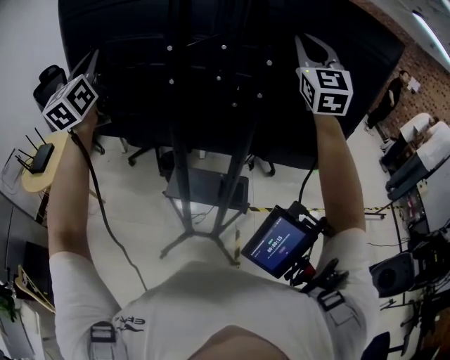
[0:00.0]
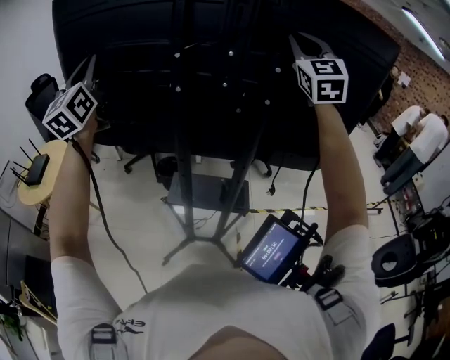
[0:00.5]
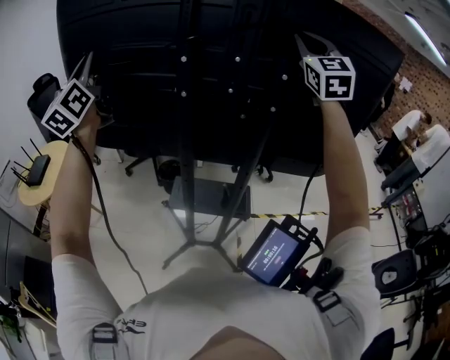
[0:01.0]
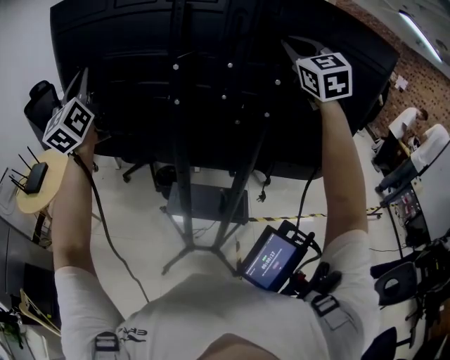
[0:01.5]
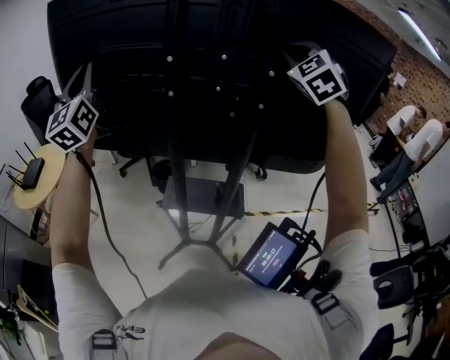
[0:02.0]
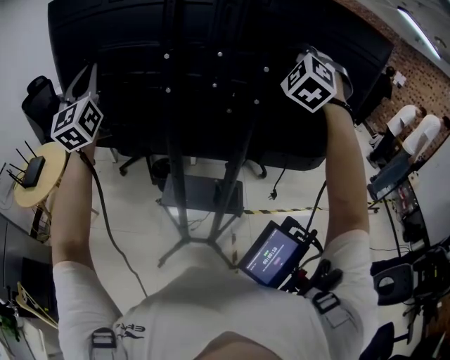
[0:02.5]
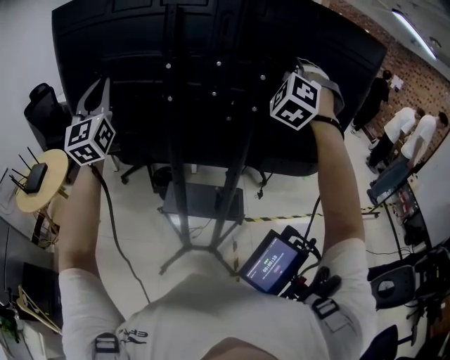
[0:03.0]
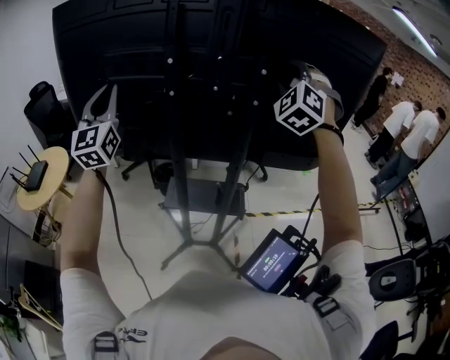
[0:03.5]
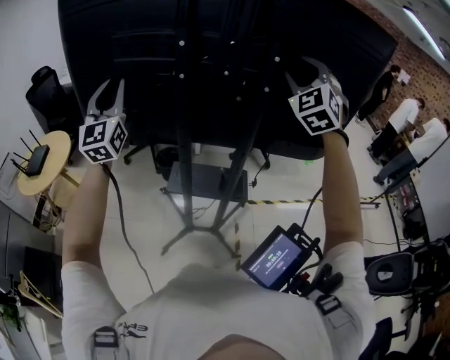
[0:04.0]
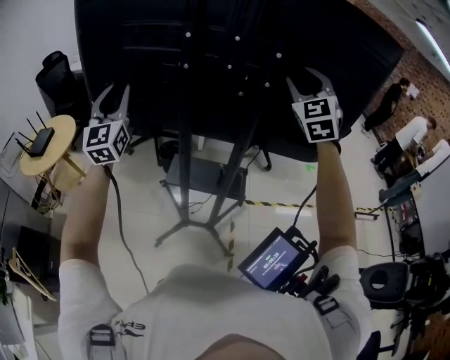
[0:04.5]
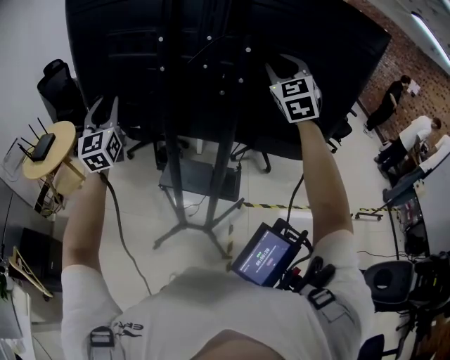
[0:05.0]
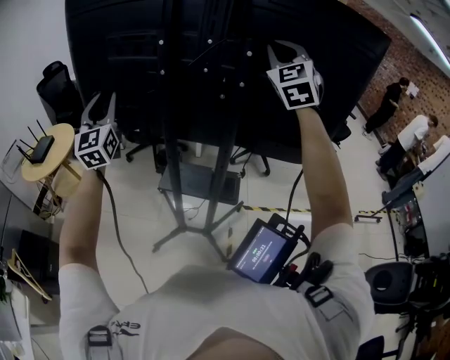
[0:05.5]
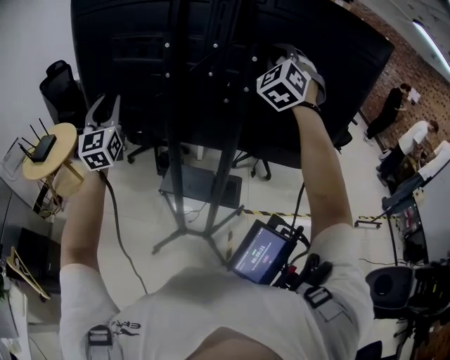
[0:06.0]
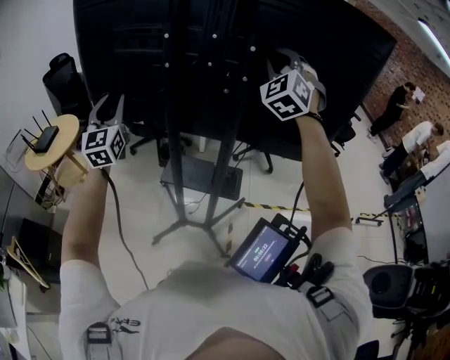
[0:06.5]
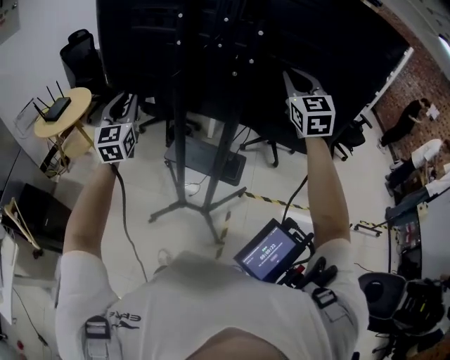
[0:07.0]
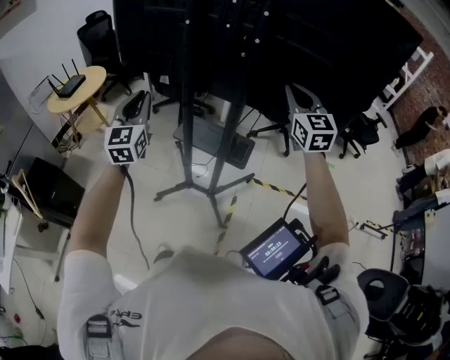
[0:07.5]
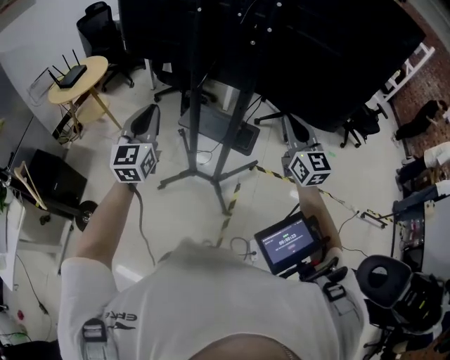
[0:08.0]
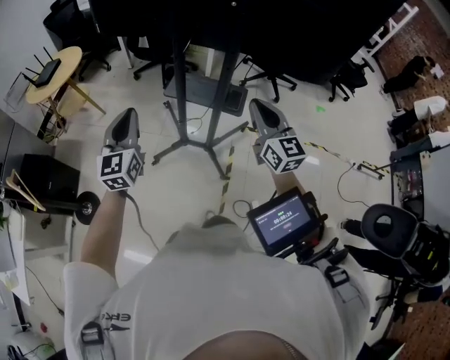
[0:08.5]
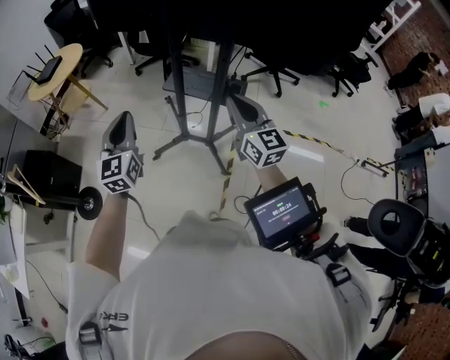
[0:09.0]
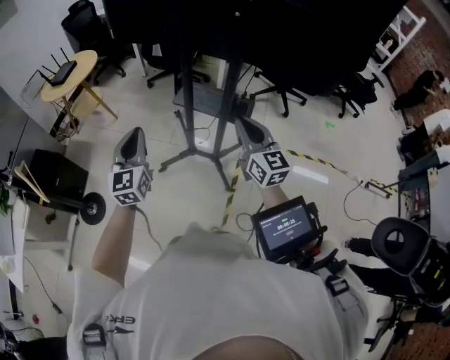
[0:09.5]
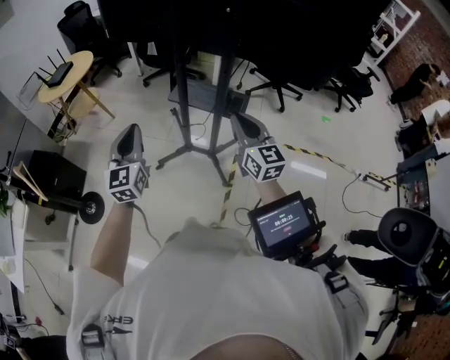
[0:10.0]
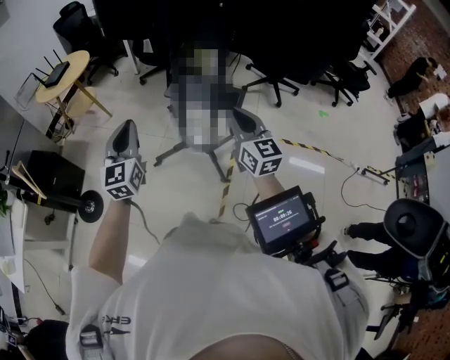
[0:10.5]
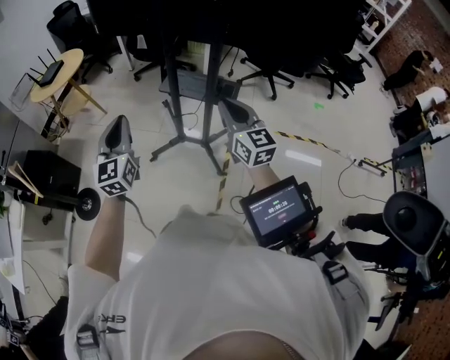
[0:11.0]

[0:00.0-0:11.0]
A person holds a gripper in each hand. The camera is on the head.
0:00.0 to 0:02.0: The right gripper changes place by roughly 5 cm, and changes its angle by roughly 40 degrees.
0:02.0 to 0:03.5: The right gripper shifts by about 5 cm, and opens. Meanwhile the left gripper moves to the right, approximately 5 cm.
0:03.5 to 0:05.5: The right gripper swivels some 40 degrees, and closes, while the left gripper travels downward and backward by roughly 10 cm.
0:05.5 to 0:07.5: The left gripper heads backward, downward and to the right, covering approximately 20 cm. Meanwhile the right gripper goes approximately 20 cm downward and backward, and changes its angle by about 30 degrees.
0:07.5 to 0:09.0: The left gripper goes about 20 cm backward and downward. Meanwhile the right gripper goes about 25 cm downward, backward and to the left, and turns by approximately 20 degrees.
0:09.0 to 0:11.0: There are only small adjustments of the grippers.

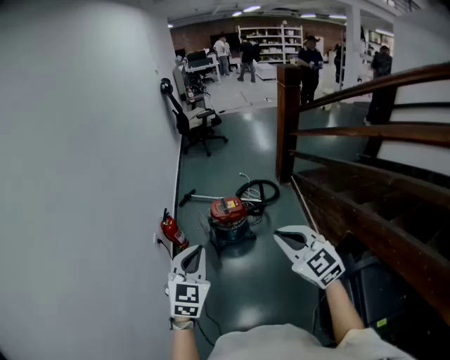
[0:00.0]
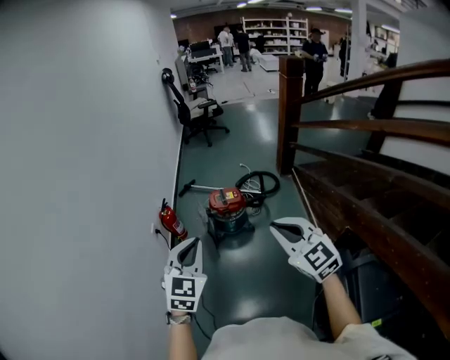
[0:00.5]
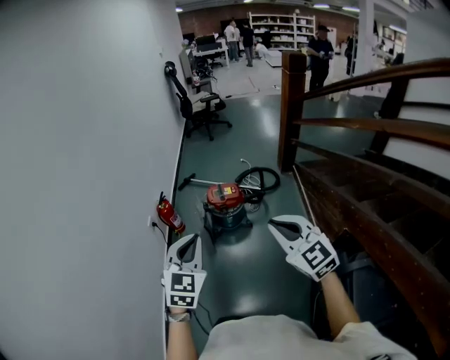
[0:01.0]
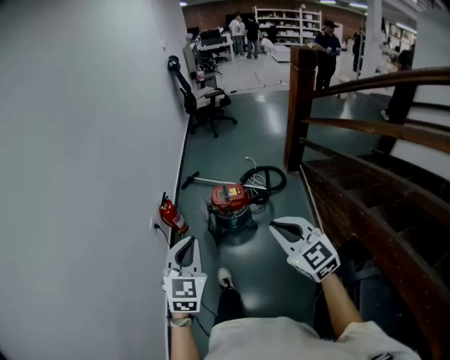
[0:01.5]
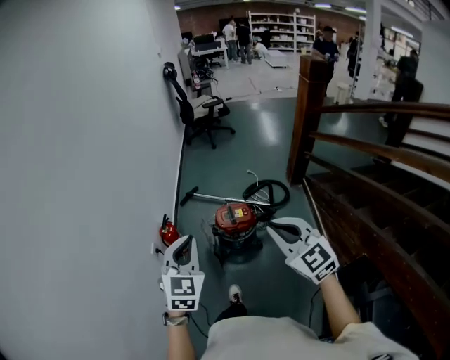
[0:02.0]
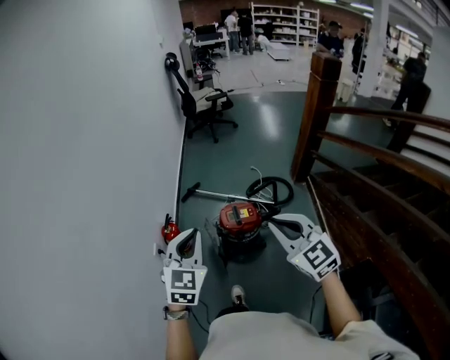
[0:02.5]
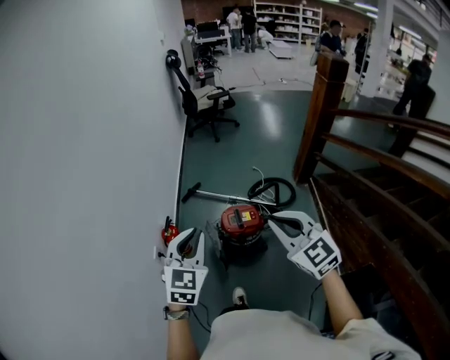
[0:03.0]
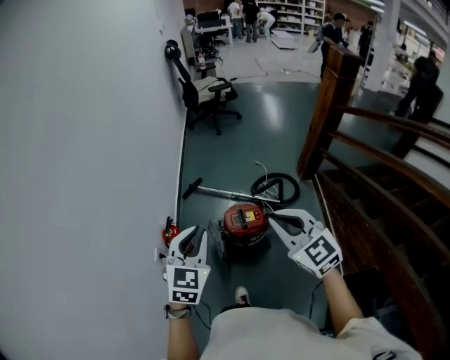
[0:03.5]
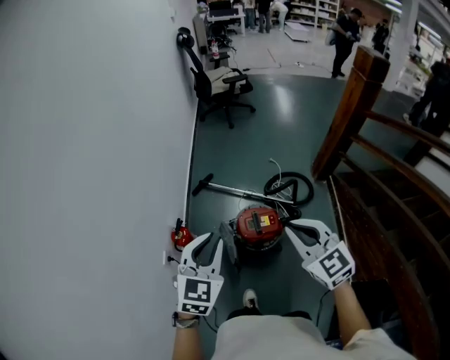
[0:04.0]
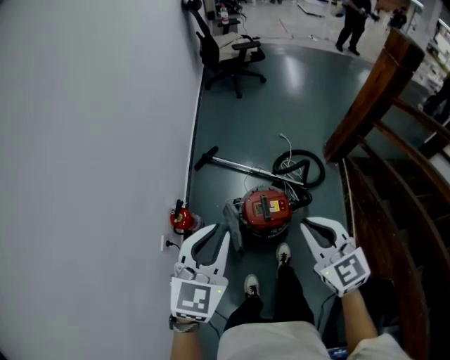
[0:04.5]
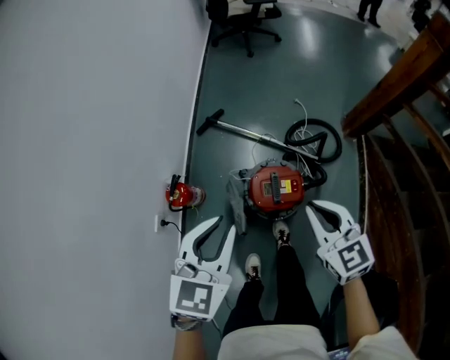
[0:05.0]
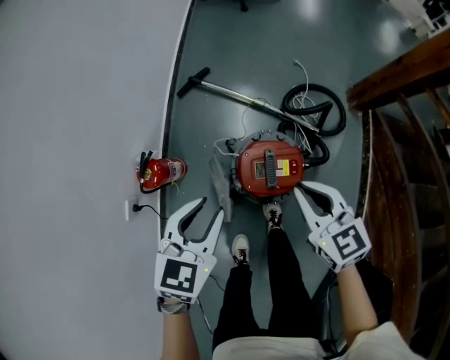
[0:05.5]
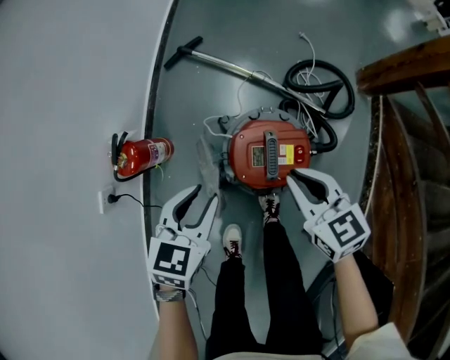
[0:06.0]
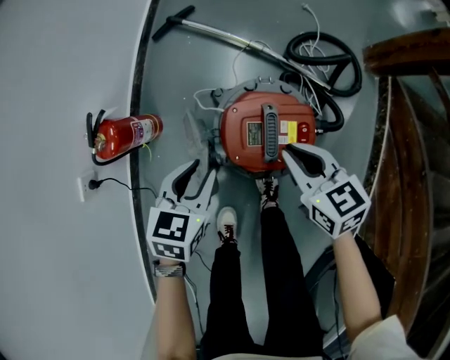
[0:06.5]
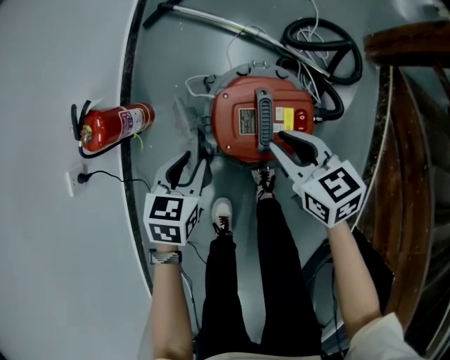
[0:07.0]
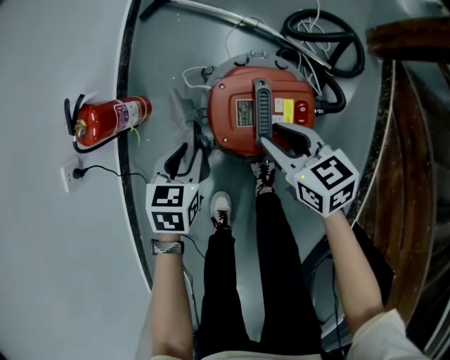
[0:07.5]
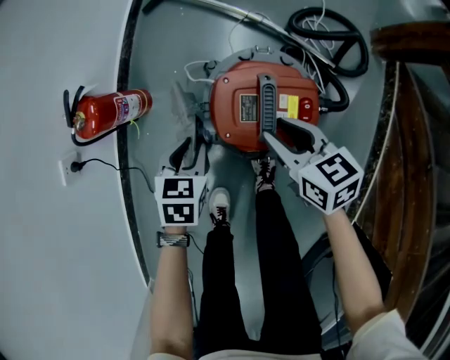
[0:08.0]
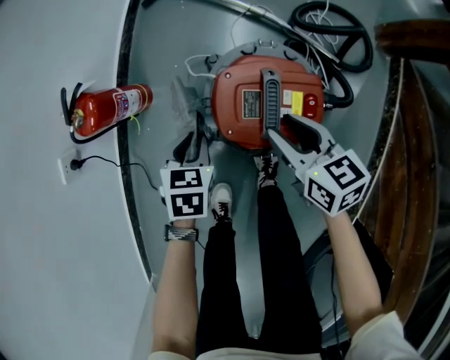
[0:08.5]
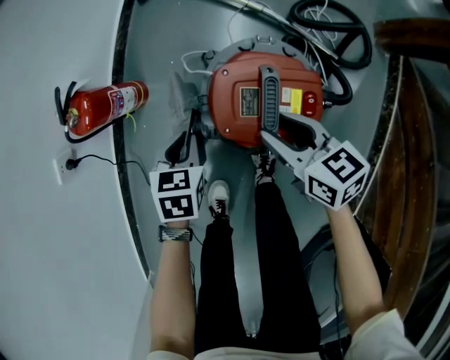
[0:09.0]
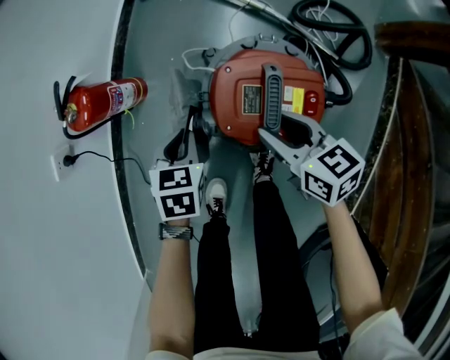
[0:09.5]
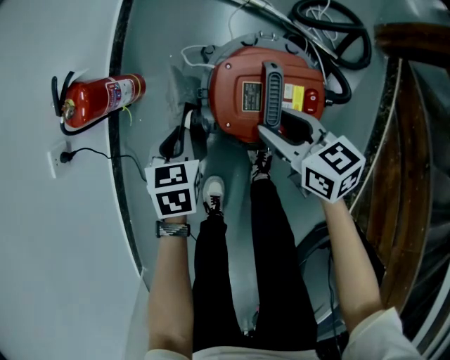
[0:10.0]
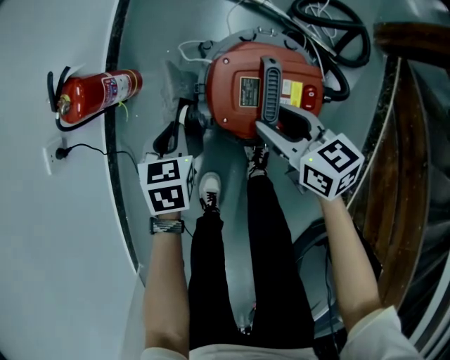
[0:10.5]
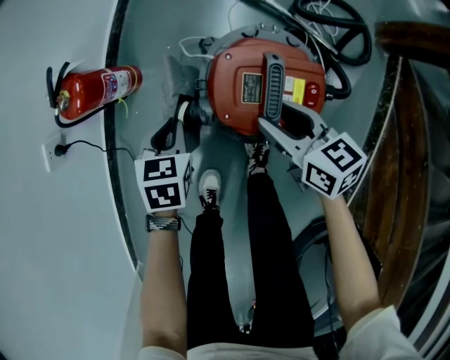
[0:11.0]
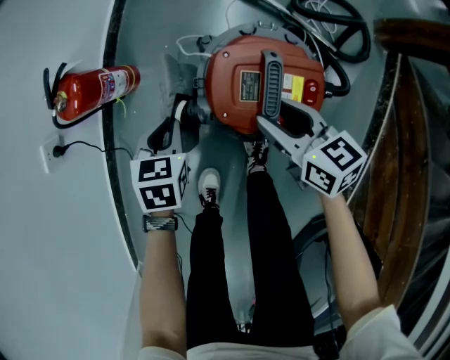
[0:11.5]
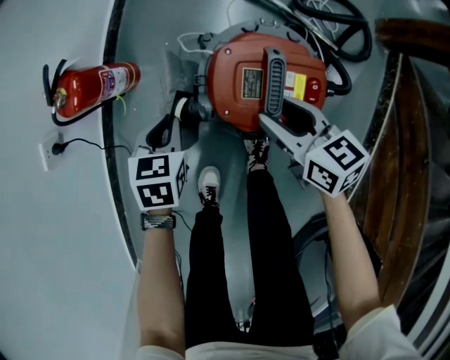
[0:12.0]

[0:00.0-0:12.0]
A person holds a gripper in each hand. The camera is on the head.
0:00.0 to 0:02.0: Both grippers move forward, roughly 25 cm.
0:02.0 to 0:04.0: The grippers both shift forward by roughly 25 cm.
0:04.0 to 0:06.0: The grippers both shift downward by about 50 cm. The left gripper swivels about 30 degrees. Meanwhile the right gripper turns by some 30 degrees.
0:06.0 to 0:08.0: Both grippers move downward, approximately 20 cm. The left gripper swivels approximately 20 degrees, while the right gripper opens up.
0:08.0 to 0:10.0: The grippers stay close to where they were, moving slightly.
0:10.0 to 0:12.0: The two grippers keep their place.

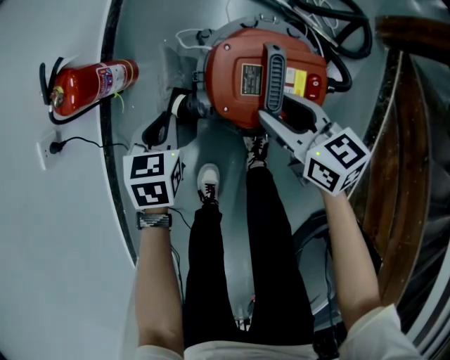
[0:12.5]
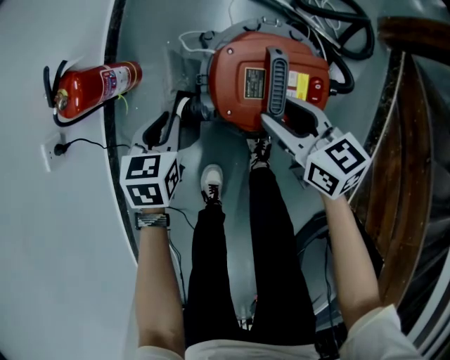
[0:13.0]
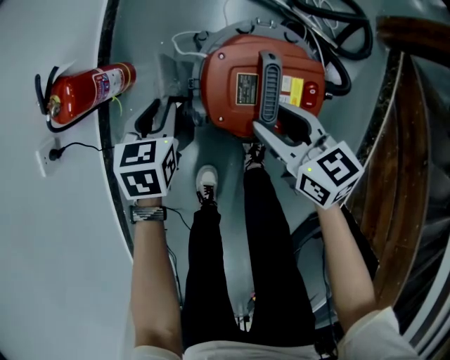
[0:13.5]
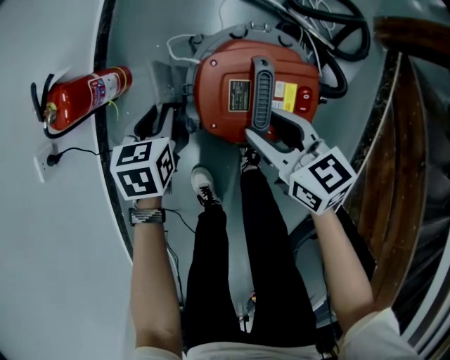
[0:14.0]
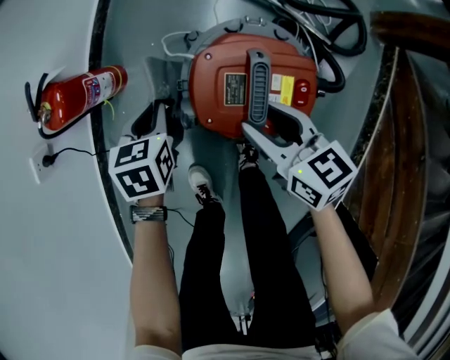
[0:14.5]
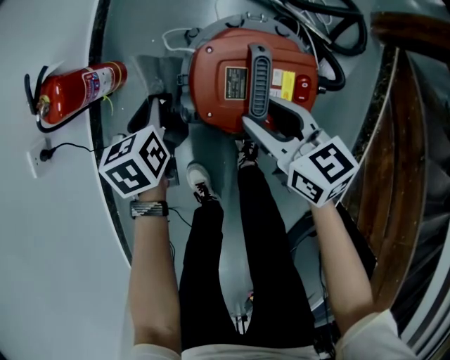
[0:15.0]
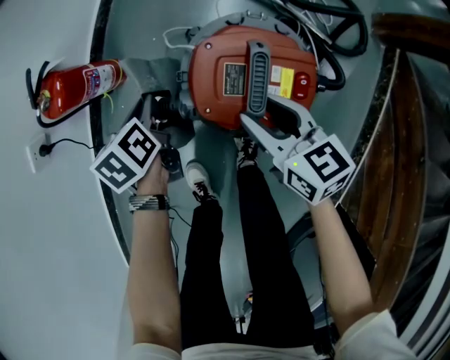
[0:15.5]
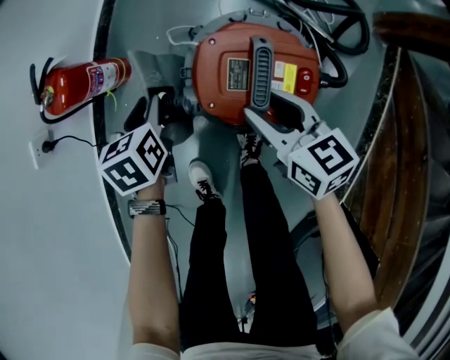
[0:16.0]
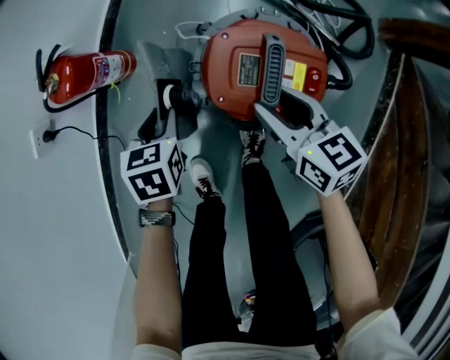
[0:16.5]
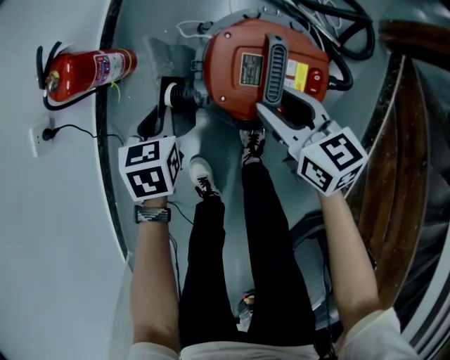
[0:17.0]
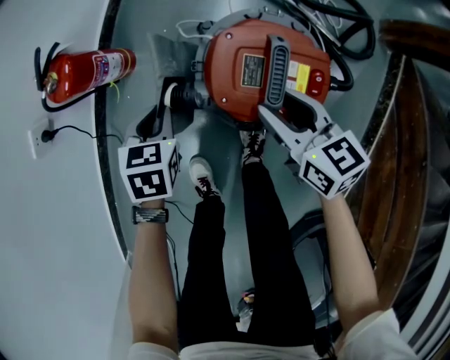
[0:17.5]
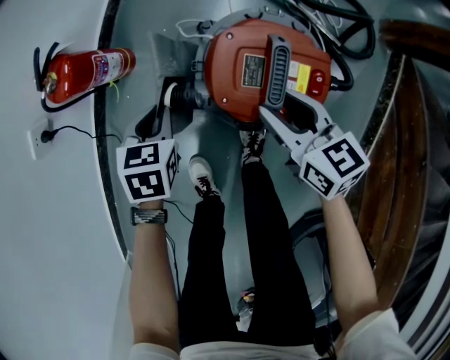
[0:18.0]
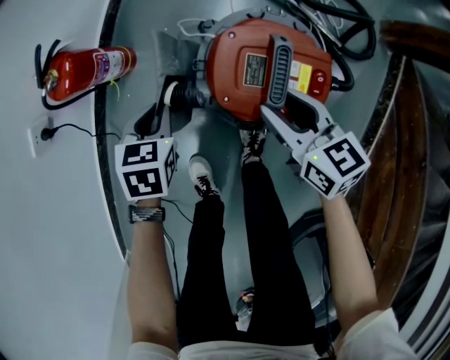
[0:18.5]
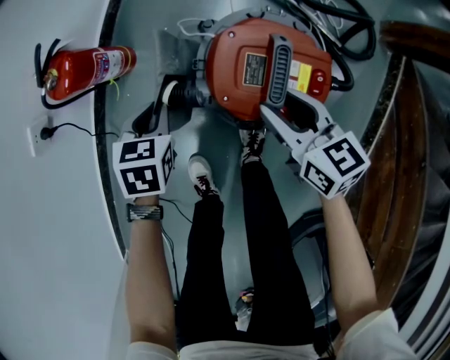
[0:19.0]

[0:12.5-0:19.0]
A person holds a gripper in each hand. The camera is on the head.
0:12.5 to 0:14.5: There are only small adjustments of the grippers.
0:14.5 to 0:17.0: The left gripper ends up approximately 5 cm from where it was.
0:17.0 to 0:19.0: The grippers make only small movements.
